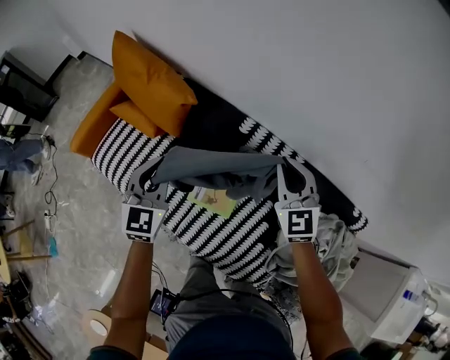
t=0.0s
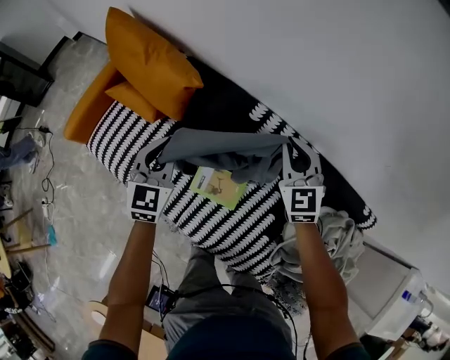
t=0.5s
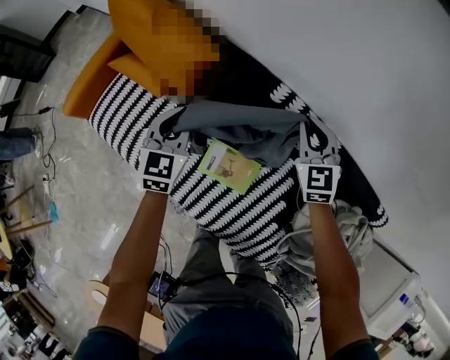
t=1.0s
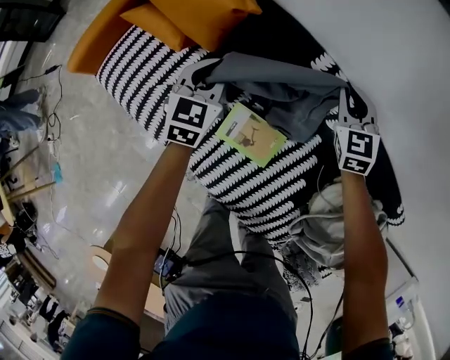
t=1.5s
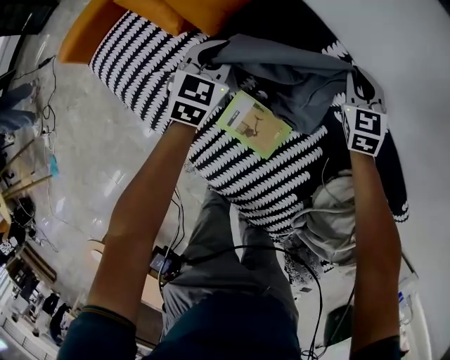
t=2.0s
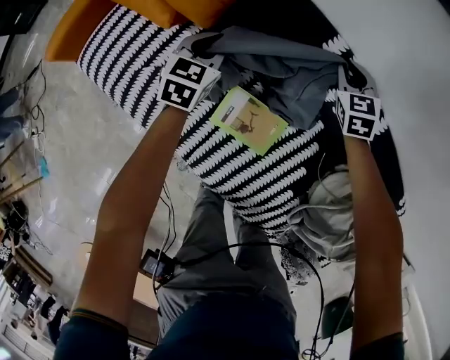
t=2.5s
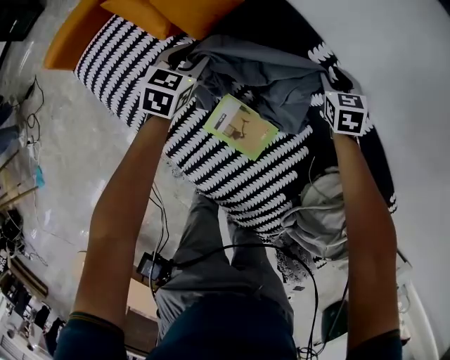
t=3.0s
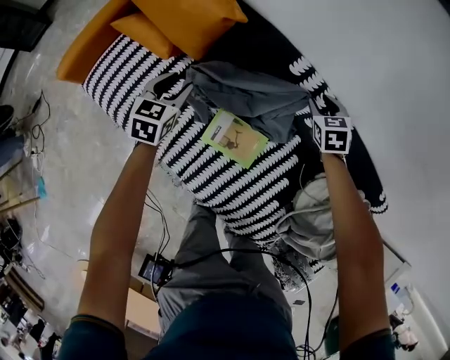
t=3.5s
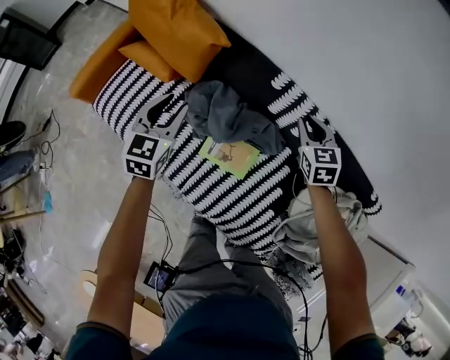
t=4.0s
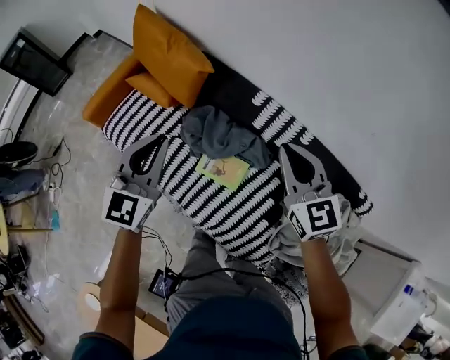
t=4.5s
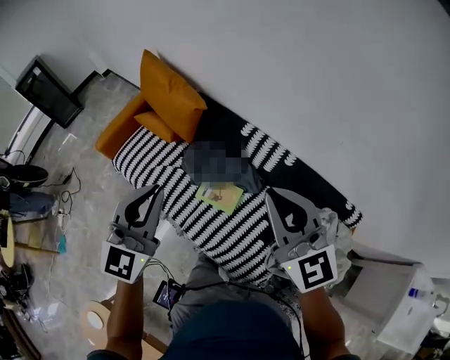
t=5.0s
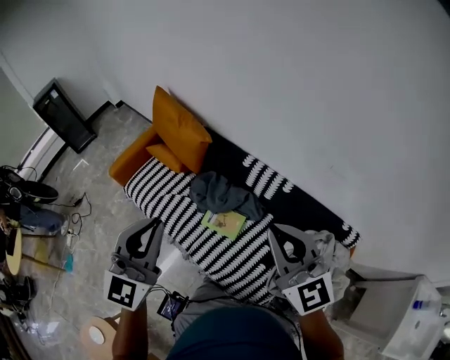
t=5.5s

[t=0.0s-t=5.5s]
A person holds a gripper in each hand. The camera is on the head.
t=0.0s to t=2.0s: The two grippers go approximately 30 cm downward and forward.
t=2.0s to t=3.5s: The left gripper moves to the left and backward, approximately 10 cm, and opens its fingers, while the right gripper changes place by roughly 5 cm, changes its angle by about 20 degrees, and opens.
t=3.5s to t=5.5s: Both grippers move upward and backward, roughly 60 cm. The left gripper tilts its fingers about 40 degrees upward, and closes up. The right gripper points its fingers approximately 50 degrees further upward, and closes.

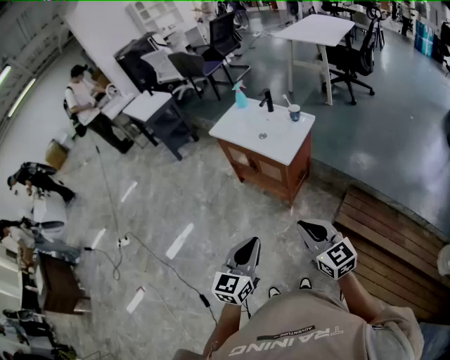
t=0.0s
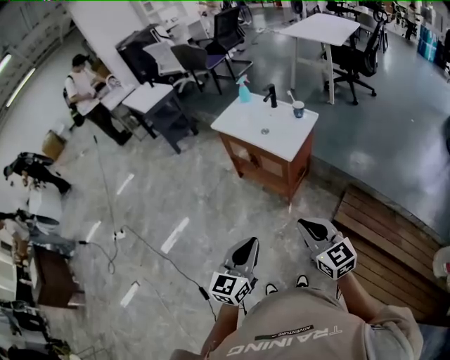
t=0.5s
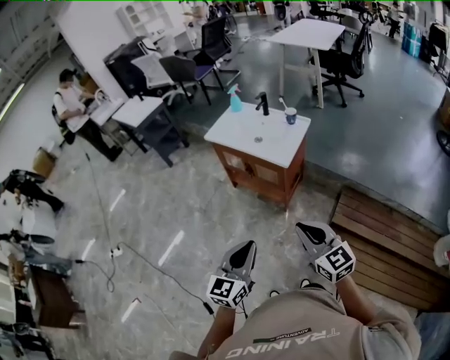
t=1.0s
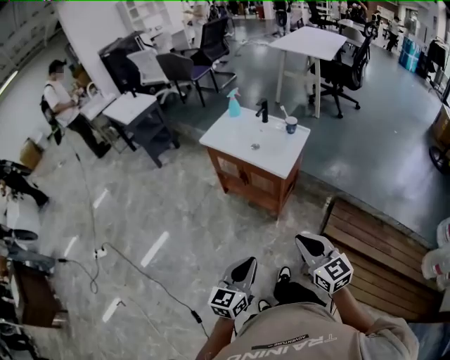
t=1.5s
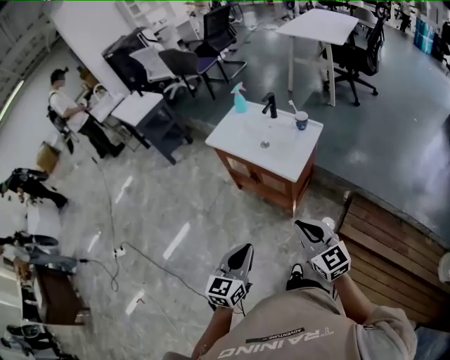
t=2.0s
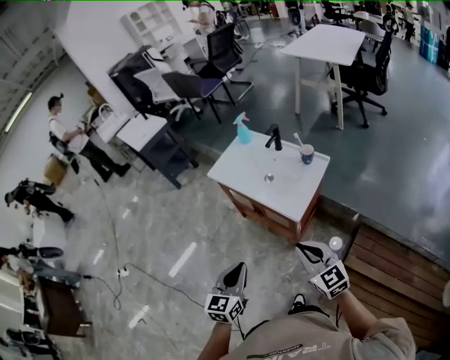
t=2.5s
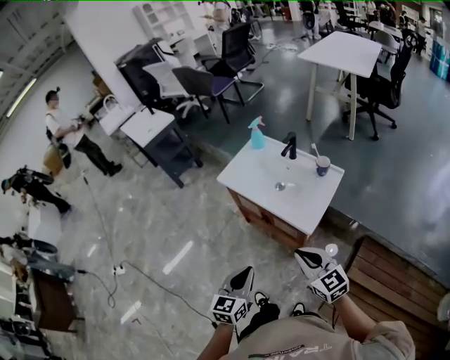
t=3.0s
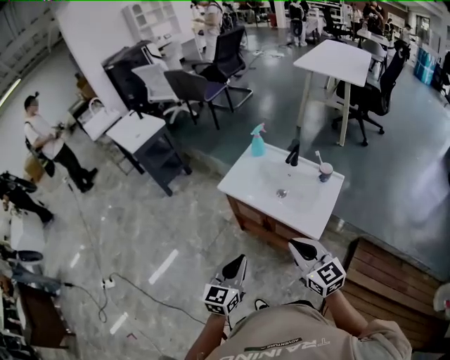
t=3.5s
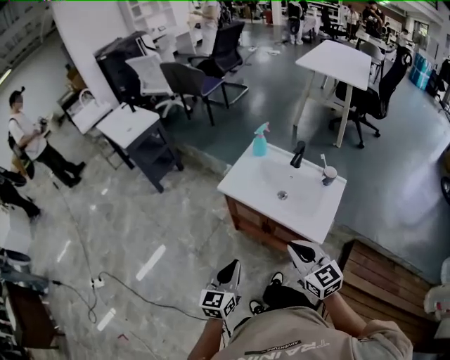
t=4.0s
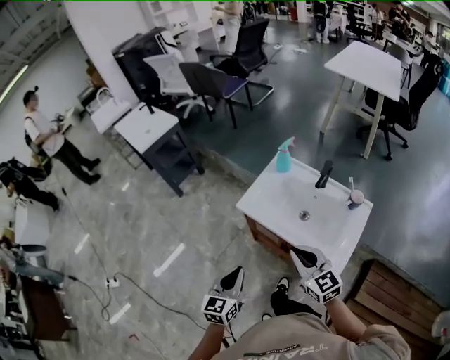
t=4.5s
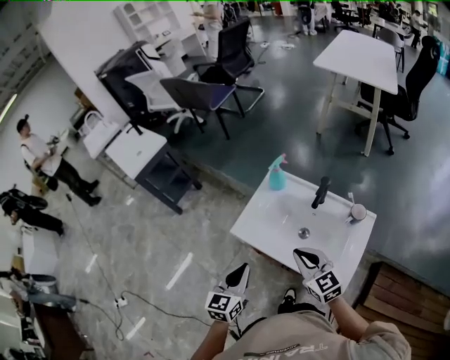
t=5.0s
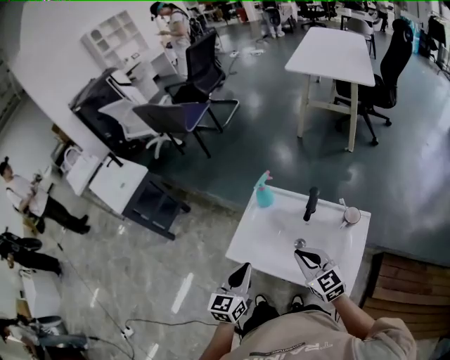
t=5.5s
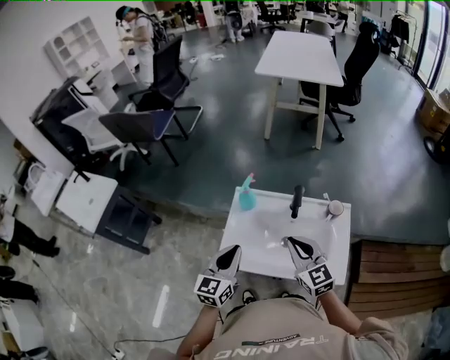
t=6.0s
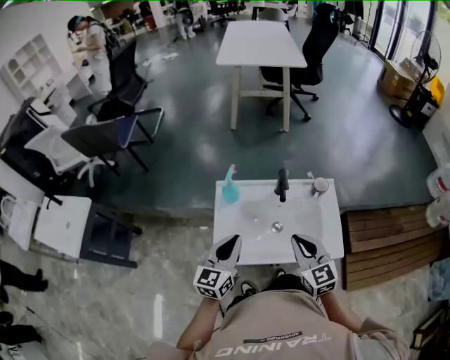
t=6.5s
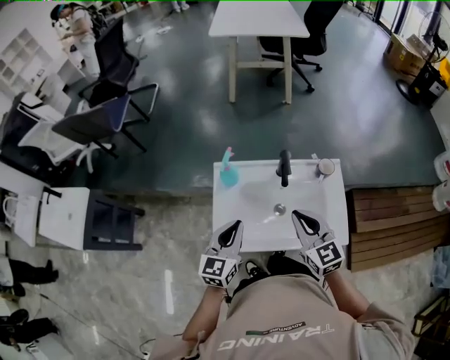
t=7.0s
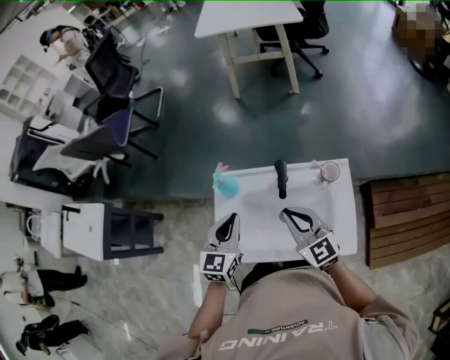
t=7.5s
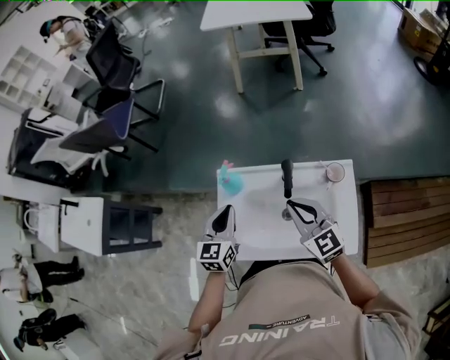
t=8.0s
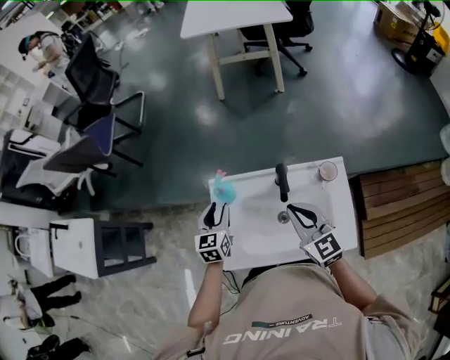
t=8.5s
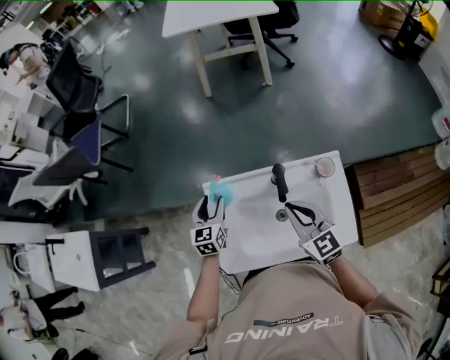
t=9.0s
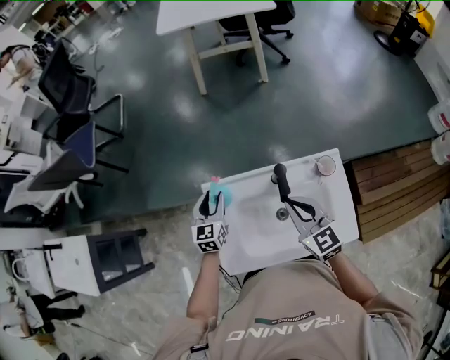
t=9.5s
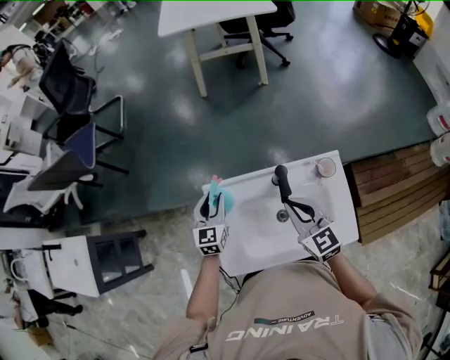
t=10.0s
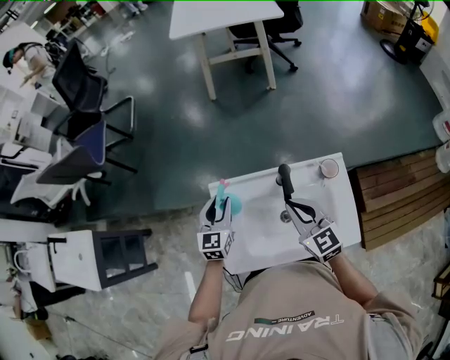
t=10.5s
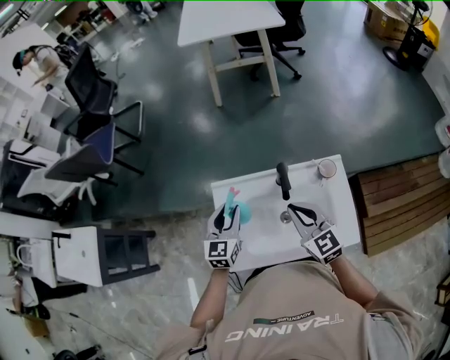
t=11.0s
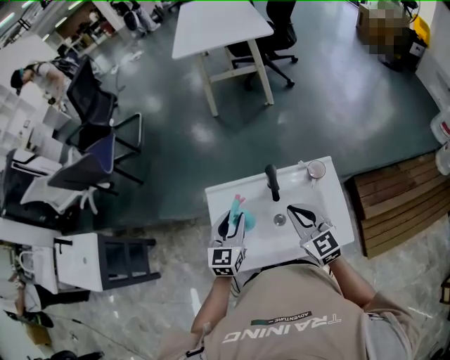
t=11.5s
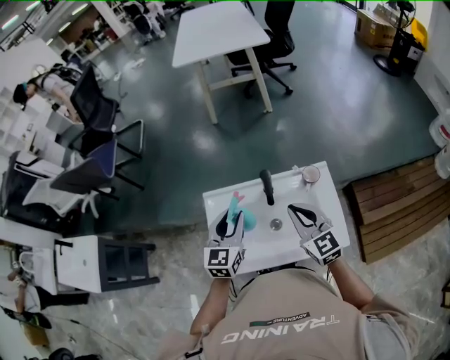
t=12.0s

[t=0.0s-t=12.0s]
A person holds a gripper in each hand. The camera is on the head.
t=0.0s to t=2.0s: The two grippers go approximately 15 cm forward.
t=2.0s to t=4.0s: Both grippers travel together forward and to the left, roughly 25 cm.
t=4.0s to t=6.0s: The left gripper changes place by some 40 cm, and changes its angle by approximately 20 degrees. Meanwhile the right gripper moves about 30 cm, and changes its angle by roughly 20 degrees.
t=6.0s to t=8.0s: The left gripper travels forward by about 15 cm. The right gripper travels forward by some 10 cm.
t=8.0s to t=10.0s: The left gripper heads forward and downward, covering roughly 15 cm, and opens.
t=10.0s to t=12.0s: The right gripper heads to the right and backward, covering roughly 5 cm; the left gripper goes approximately 20 cm upward, backward and to the right.

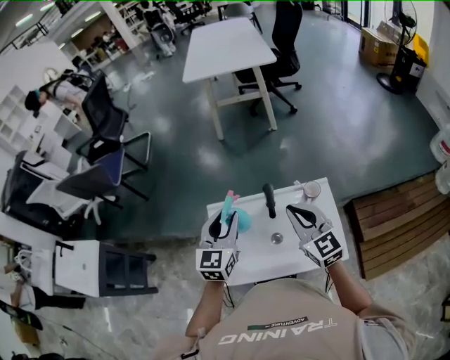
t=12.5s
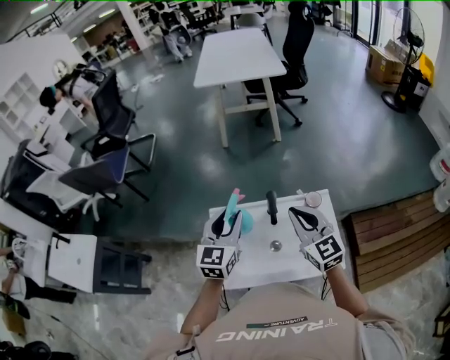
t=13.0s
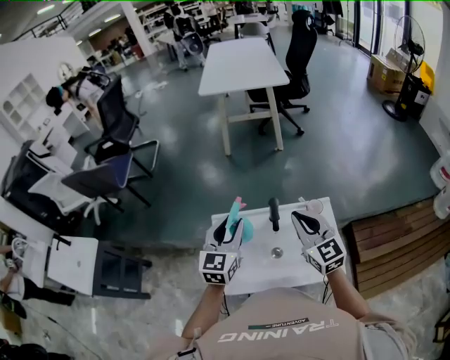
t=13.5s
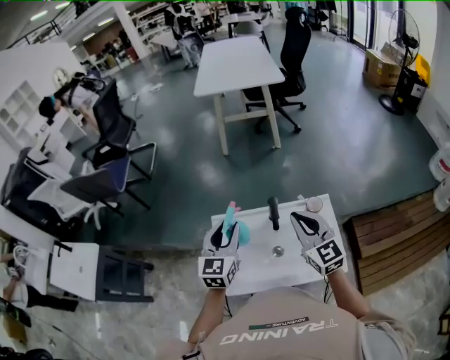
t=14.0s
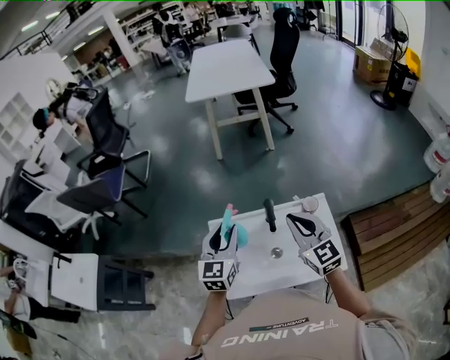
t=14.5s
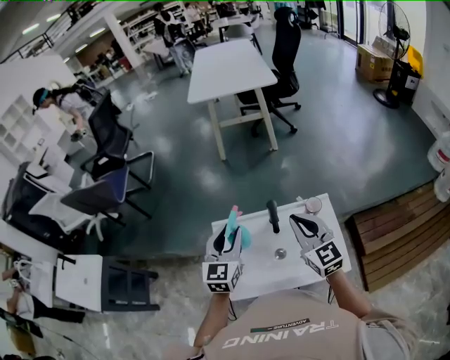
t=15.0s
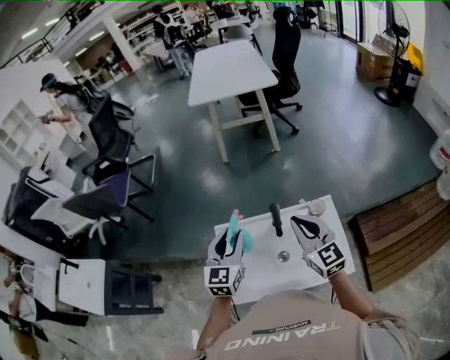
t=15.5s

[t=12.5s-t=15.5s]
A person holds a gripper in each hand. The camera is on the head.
t=12.5s to t=14.0s: The grippers move only a little.
t=14.0s to t=15.5s: Neither gripper changes place.

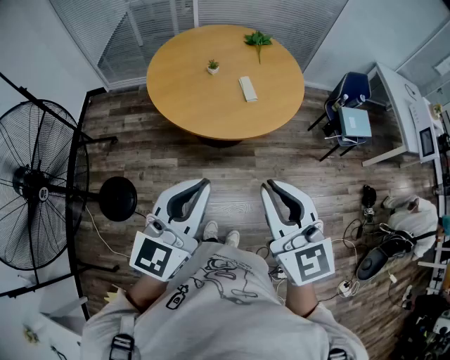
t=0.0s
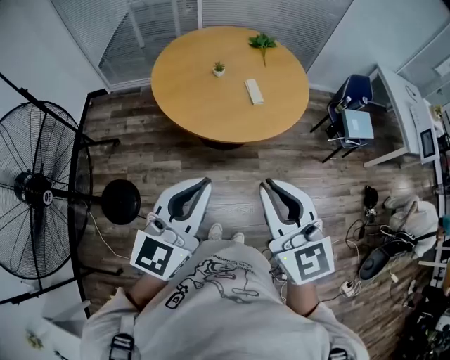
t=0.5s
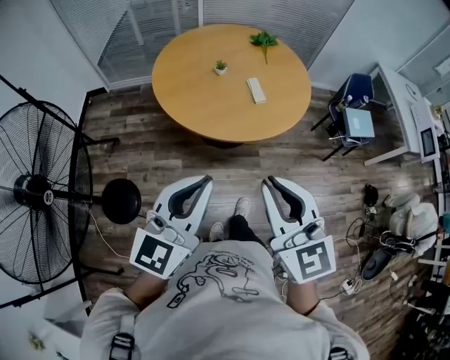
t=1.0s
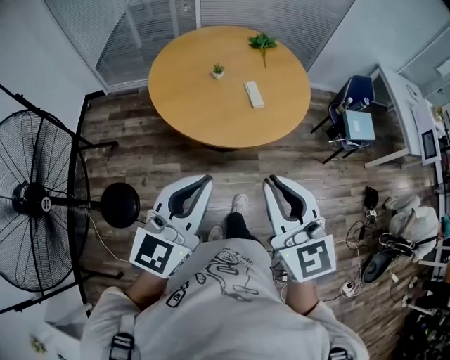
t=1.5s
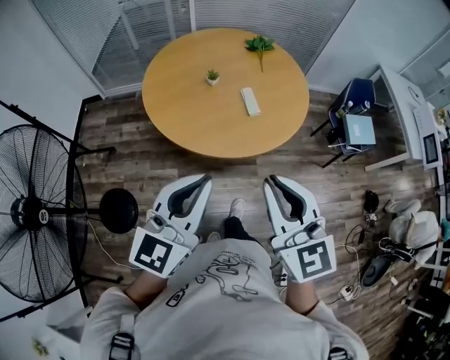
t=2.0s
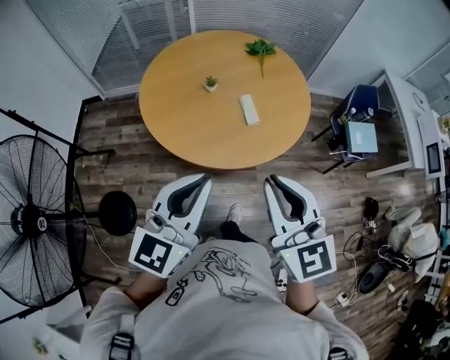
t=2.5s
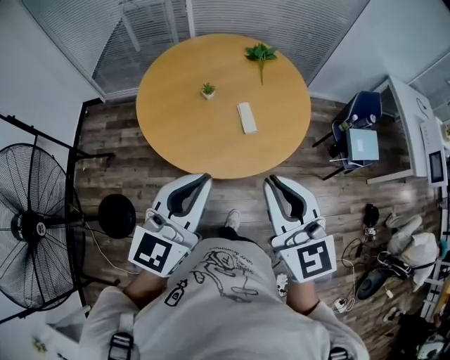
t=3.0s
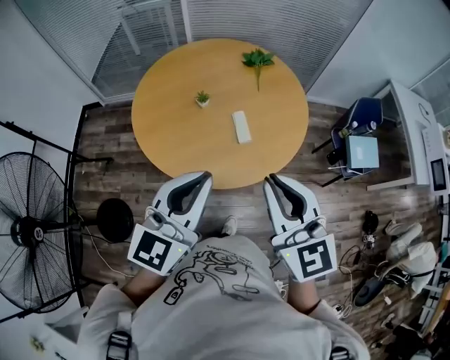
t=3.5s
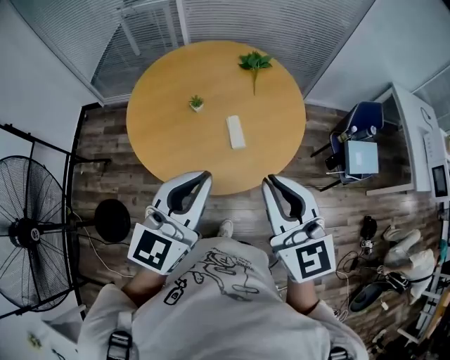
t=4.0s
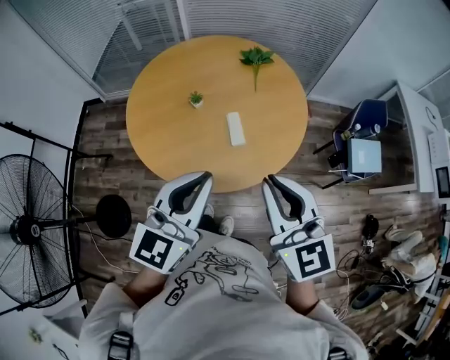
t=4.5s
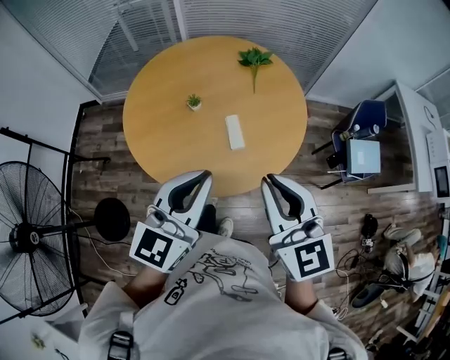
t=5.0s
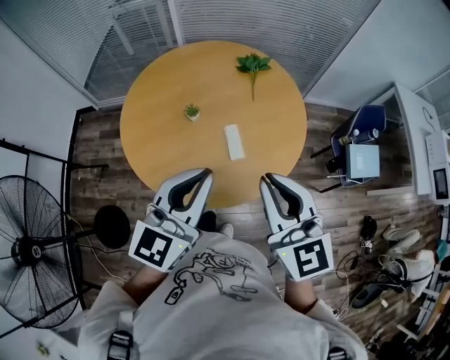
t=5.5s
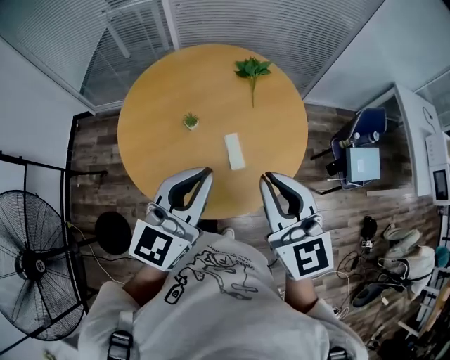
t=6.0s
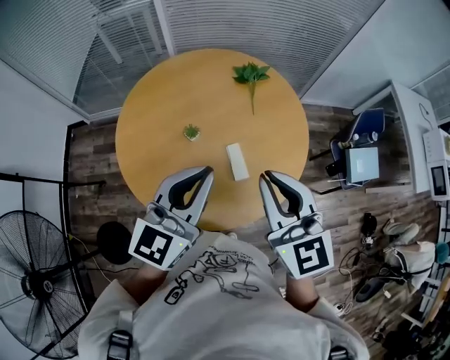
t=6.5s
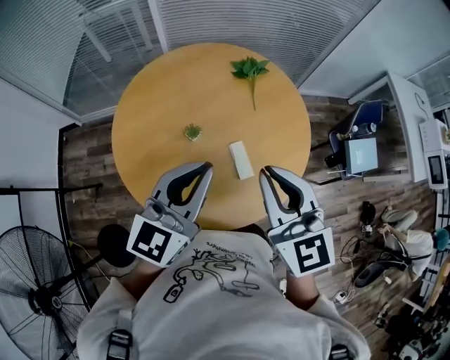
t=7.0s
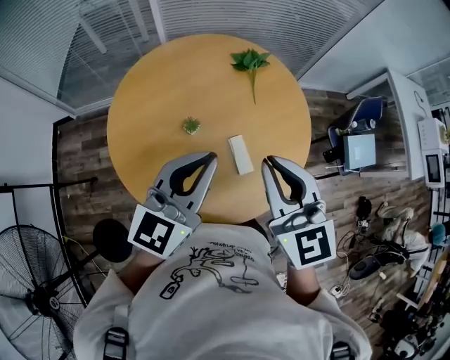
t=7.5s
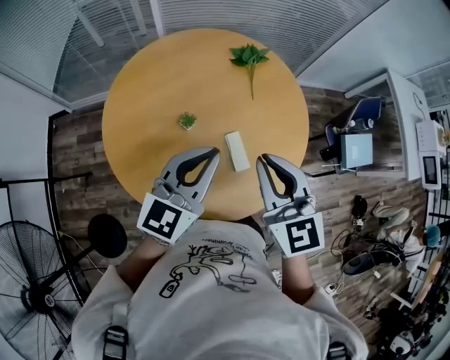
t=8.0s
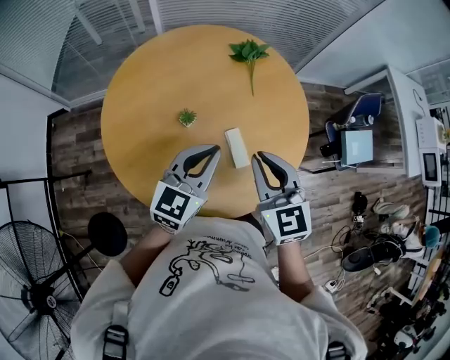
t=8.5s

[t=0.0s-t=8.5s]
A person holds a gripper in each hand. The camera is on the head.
t=0.0s to t=2.0s: The two grippers go some 15 cm forward.
t=2.0s to t=4.0s: The two grippers go roughly 25 cm forward and to the right.
t=4.0s to t=6.5s: Both grippers move forward, approximately 20 cm.
t=6.5s to t=8.5s: Both grippers travel together downward and forward, roughly 15 cm.
